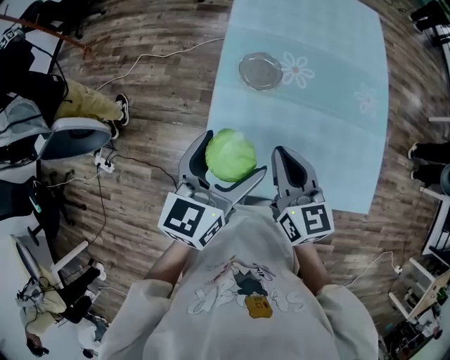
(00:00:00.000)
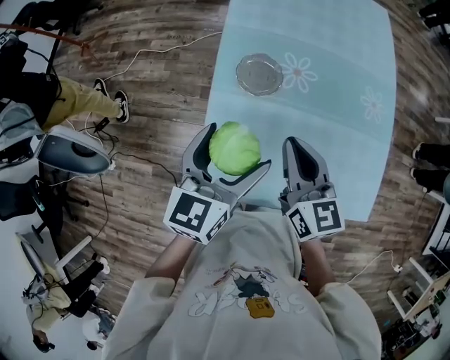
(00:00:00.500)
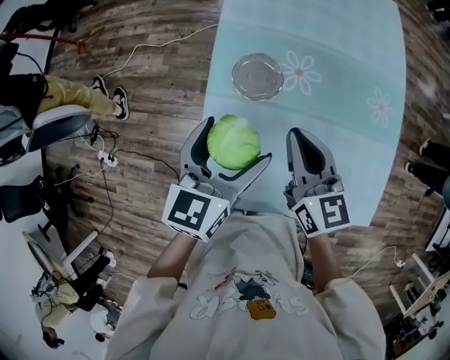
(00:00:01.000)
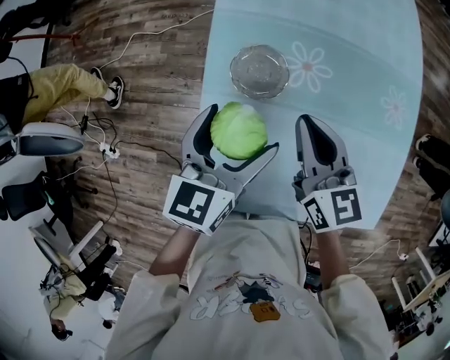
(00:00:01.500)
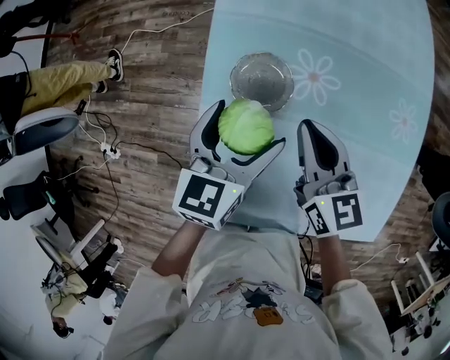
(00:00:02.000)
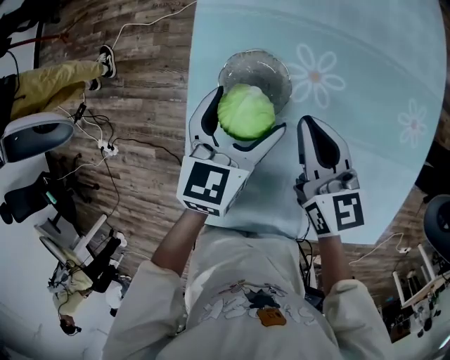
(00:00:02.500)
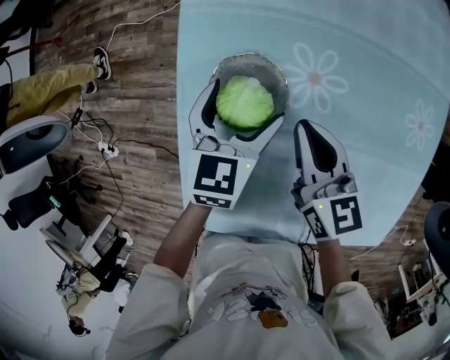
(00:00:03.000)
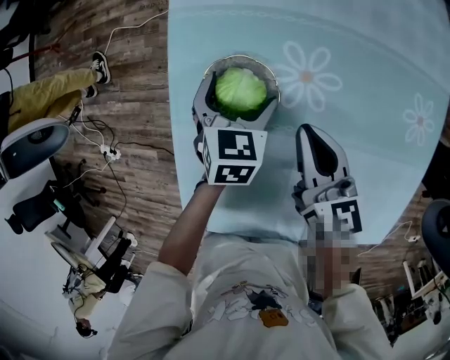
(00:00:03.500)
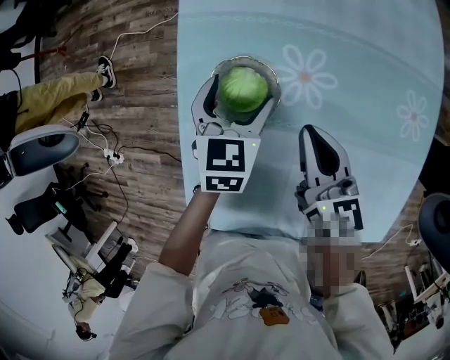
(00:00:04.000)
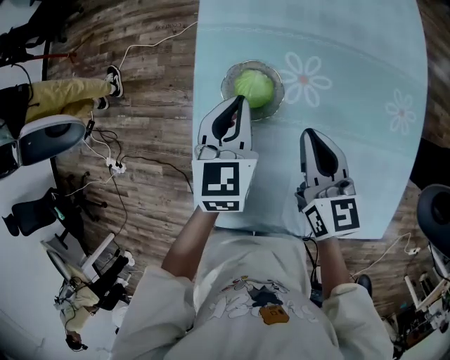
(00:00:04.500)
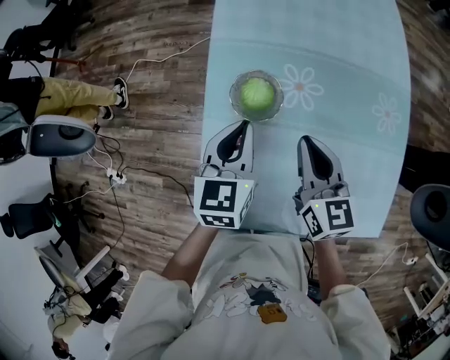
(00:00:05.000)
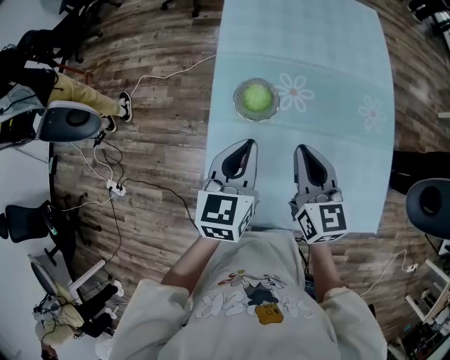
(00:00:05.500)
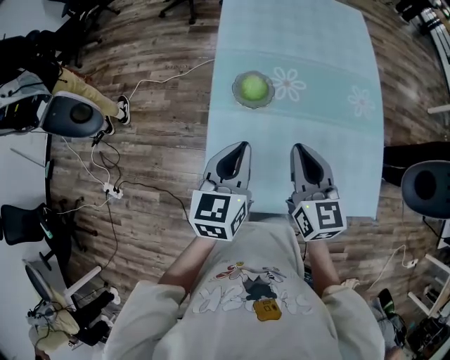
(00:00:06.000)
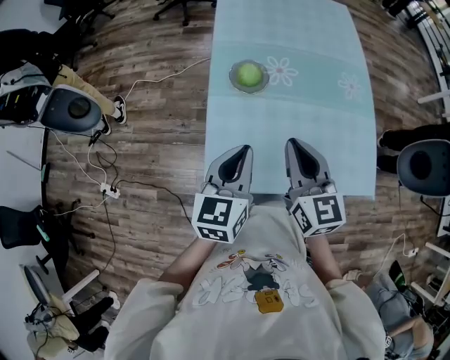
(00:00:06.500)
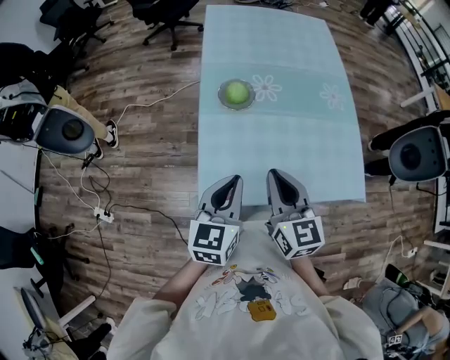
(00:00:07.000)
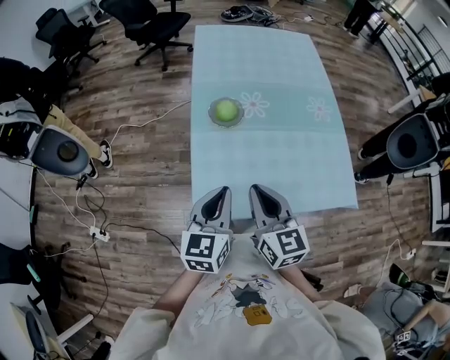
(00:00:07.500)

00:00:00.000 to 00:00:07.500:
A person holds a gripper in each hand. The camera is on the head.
00:00:00.000 to 00:00:02.000: The two grippers go some 25 cm forward and downward.
00:00:02.000 to 00:00:04.000: The left gripper moves downward and forward, roughly 15 cm; the right gripper moves downward, roughly 5 cm.
00:00:04.000 to 00:00:05.500: Both grippers travel together upward and backward, approximately 20 cm. The left gripper closes up.
00:00:05.500 to 00:00:07.500: The grippers both shift backward by about 20 cm.

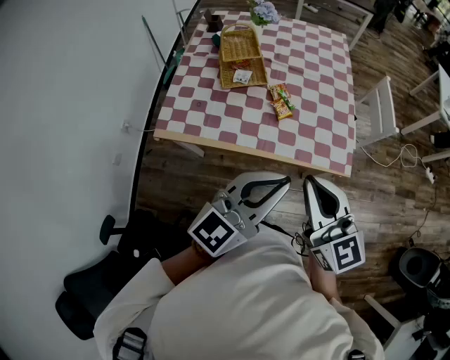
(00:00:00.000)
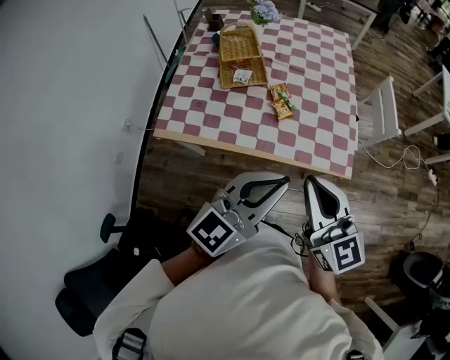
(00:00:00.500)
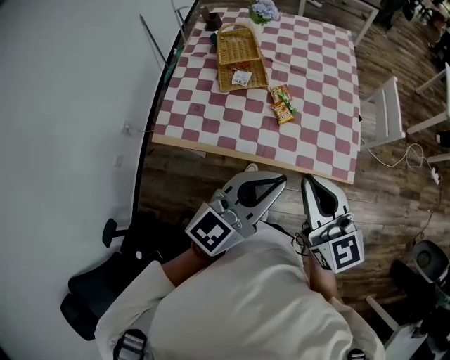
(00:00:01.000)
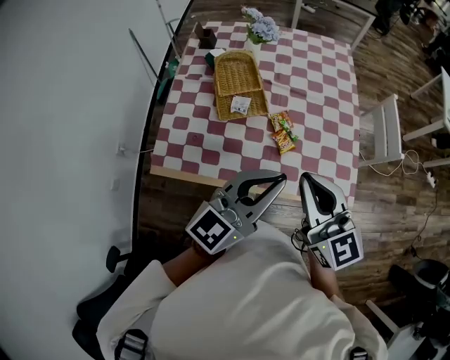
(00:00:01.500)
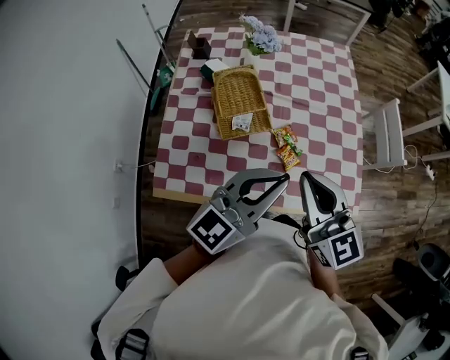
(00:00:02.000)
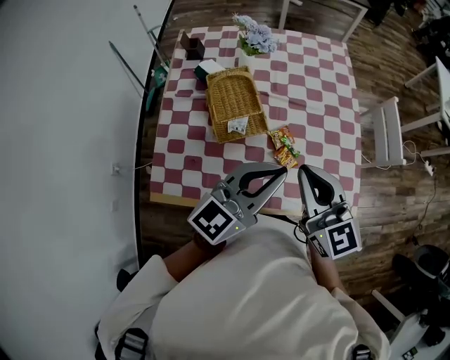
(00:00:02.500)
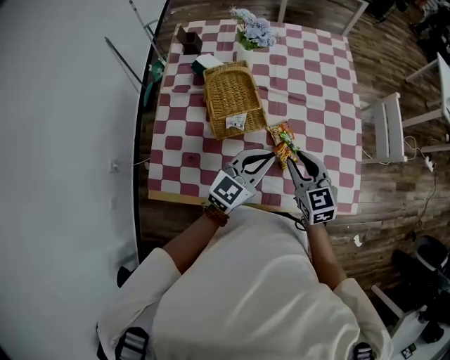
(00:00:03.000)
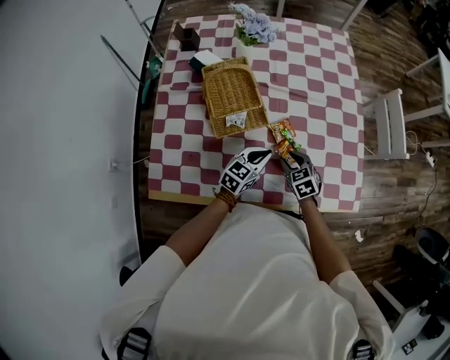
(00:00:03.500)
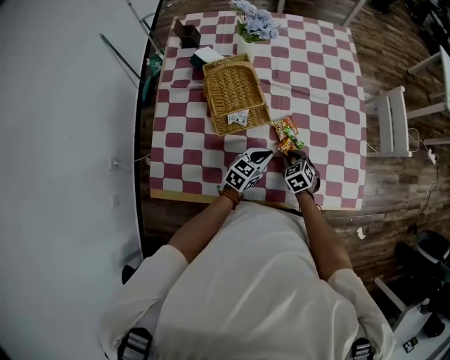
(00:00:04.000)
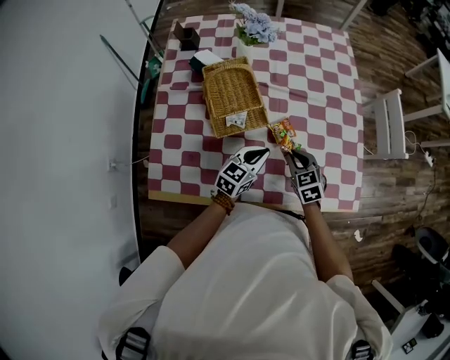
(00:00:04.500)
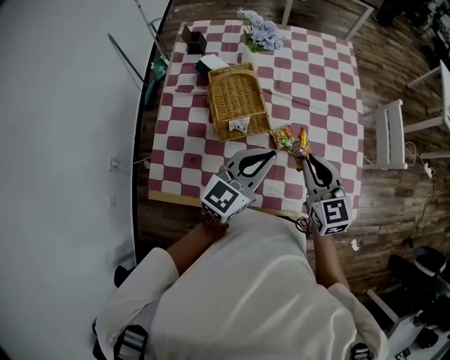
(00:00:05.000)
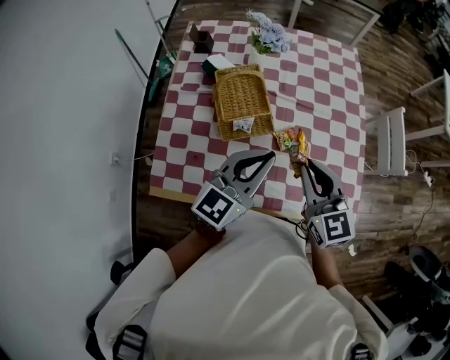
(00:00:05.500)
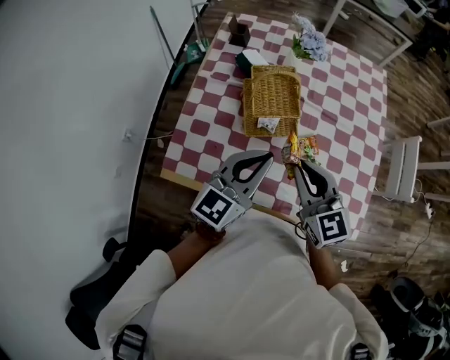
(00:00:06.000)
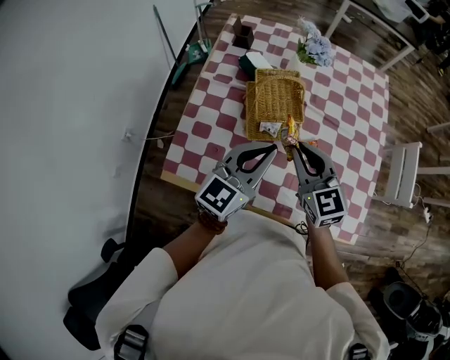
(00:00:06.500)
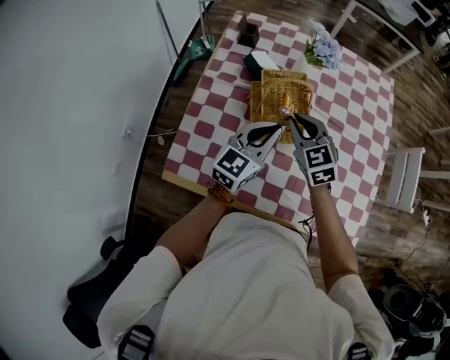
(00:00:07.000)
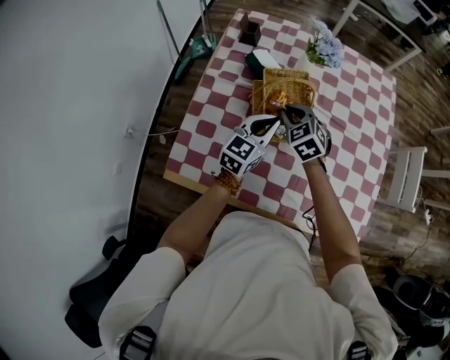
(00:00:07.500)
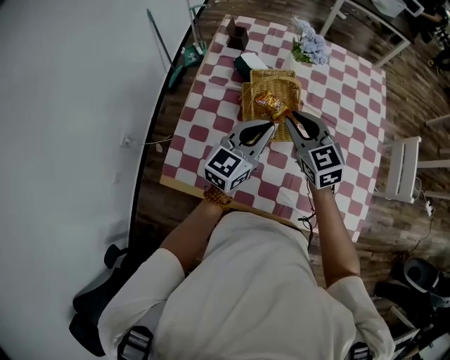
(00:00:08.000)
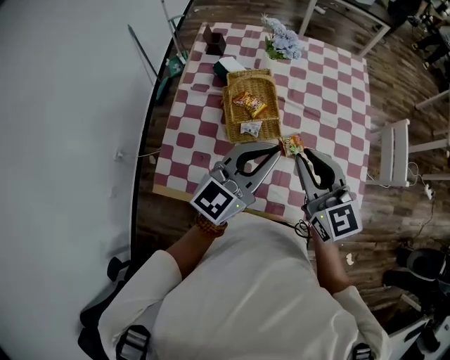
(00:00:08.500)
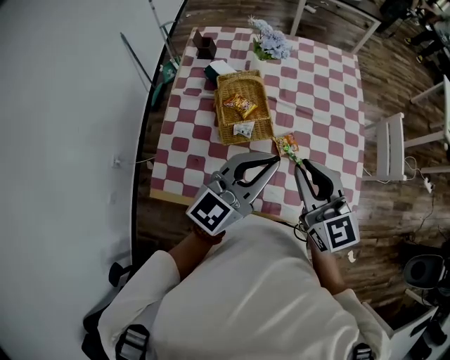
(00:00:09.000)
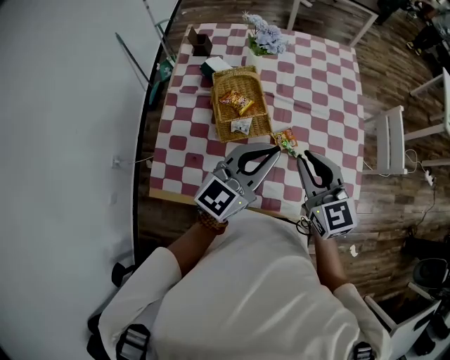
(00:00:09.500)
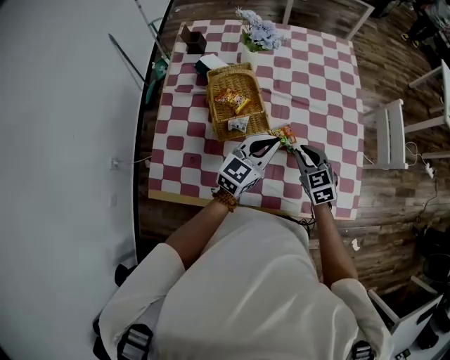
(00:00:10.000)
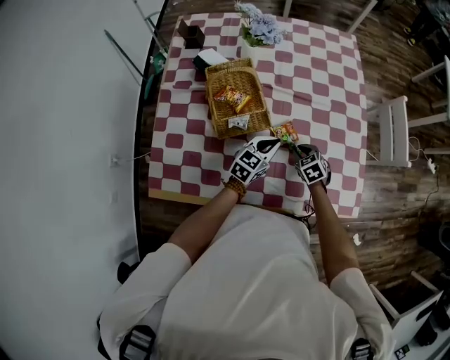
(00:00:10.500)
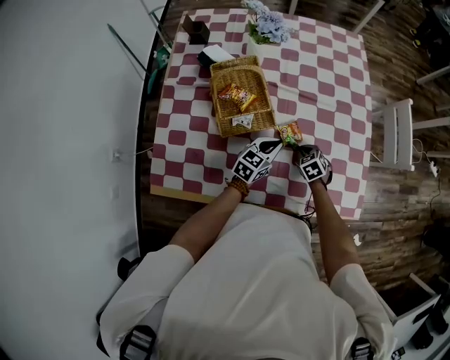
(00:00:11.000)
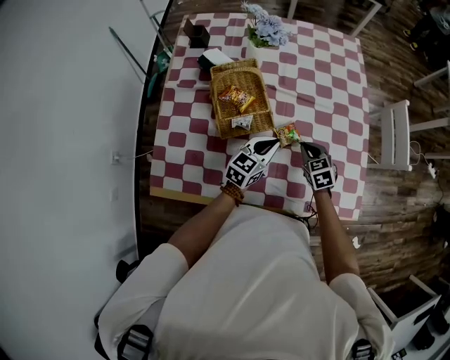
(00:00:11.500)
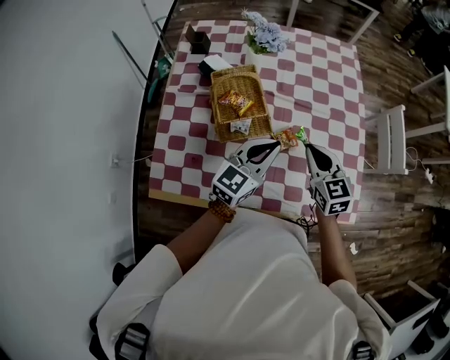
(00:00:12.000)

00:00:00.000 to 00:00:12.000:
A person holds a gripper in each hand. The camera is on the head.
00:00:00.000 to 00:00:02.000: Both grippers move forward and to the left, approximately 25 cm.
00:00:02.000 to 00:00:04.000: The grippers both shift downward by about 40 cm. The right gripper tilts its fingers about 60 degrees downward, and opens up; the left gripper tilts its fingers some 30 degrees downward.
00:00:04.000 to 00:00:06.000: The two grippers go some 35 cm upward. The left gripper changes its angle by roughly 30 degrees. The right gripper tips its fingers upward by roughly 40 degrees.
00:00:06.000 to 00:00:08.000: The left gripper shifts approximately 10 cm forward and downward. Meanwhile the right gripper travels forward by about 15 cm.
00:00:08.000 to 00:00:10.000: Both grippers travel together to the right and downward, some 20 cm. The right gripper changes its angle by about 20 degrees.
00:00:10.000 to 00:00:12.000: The right gripper reaches approximately 20 cm downward, then returns. Meanwhile the left gripper reaches some 15 cm downward, then returns.

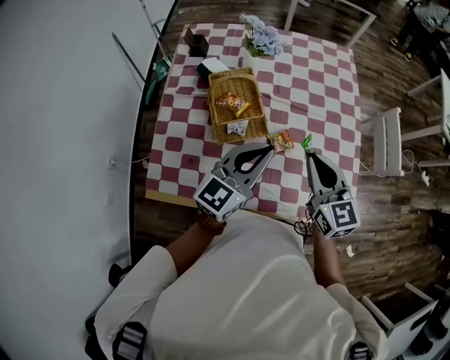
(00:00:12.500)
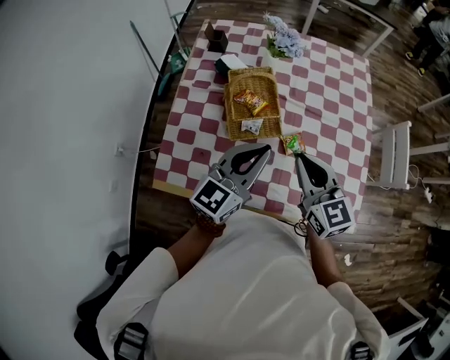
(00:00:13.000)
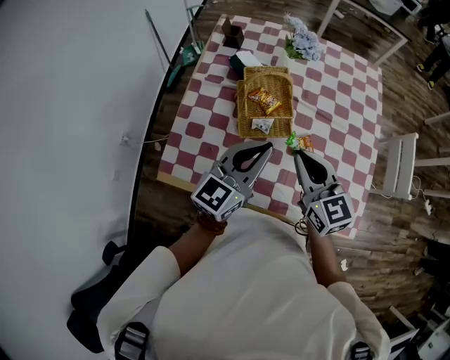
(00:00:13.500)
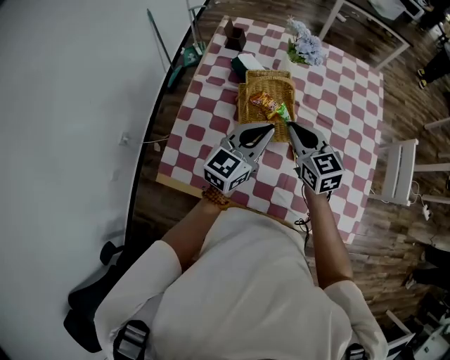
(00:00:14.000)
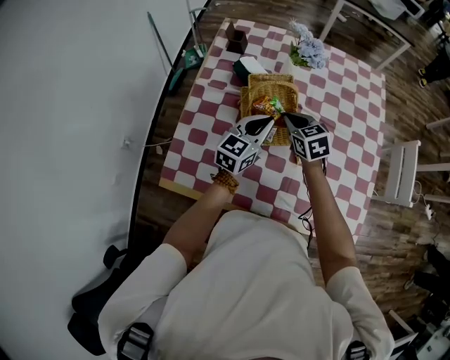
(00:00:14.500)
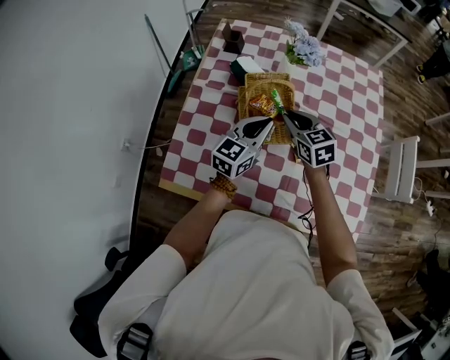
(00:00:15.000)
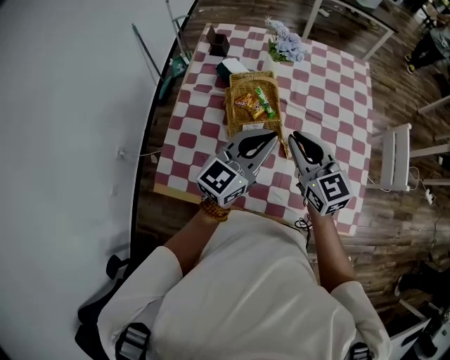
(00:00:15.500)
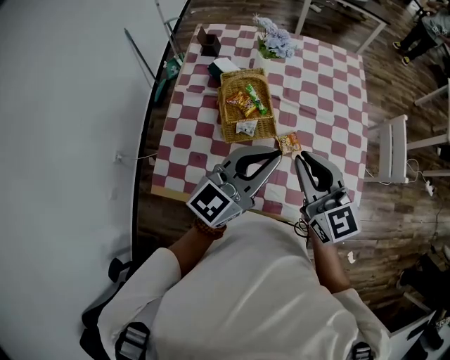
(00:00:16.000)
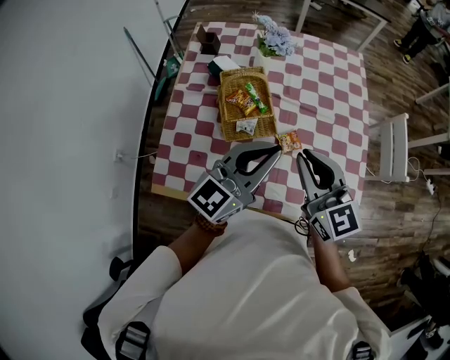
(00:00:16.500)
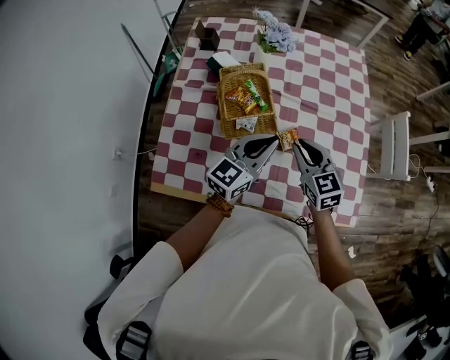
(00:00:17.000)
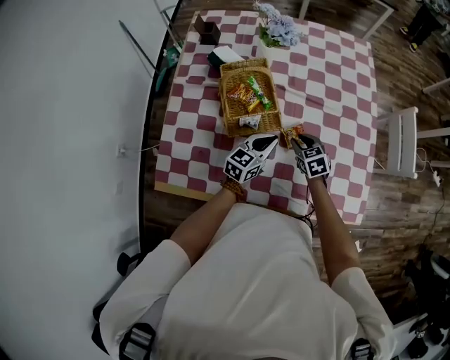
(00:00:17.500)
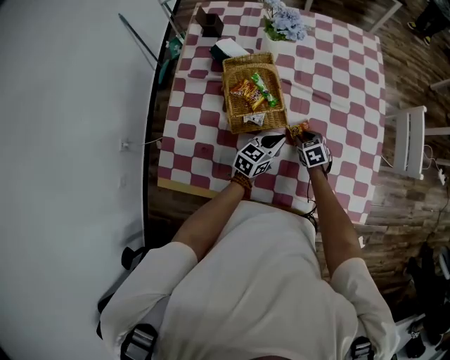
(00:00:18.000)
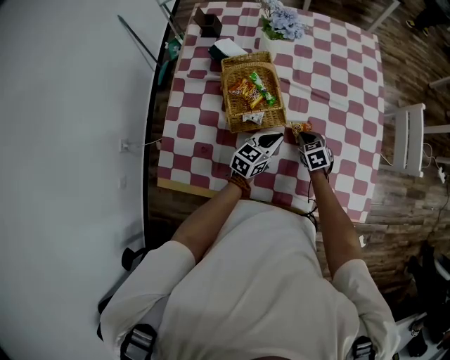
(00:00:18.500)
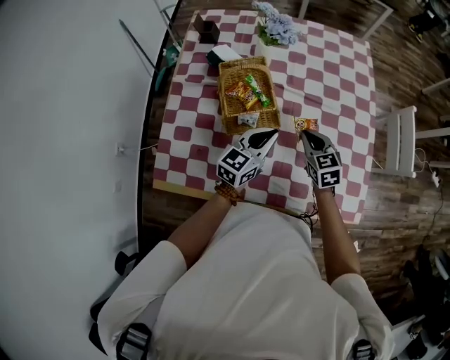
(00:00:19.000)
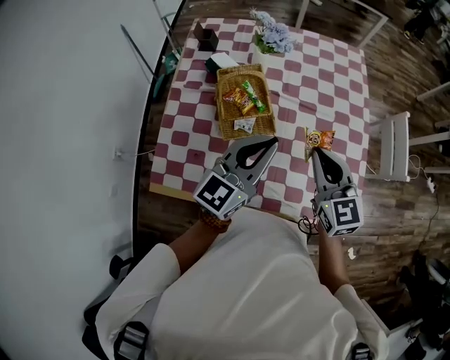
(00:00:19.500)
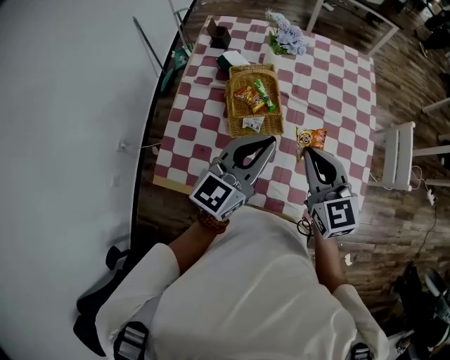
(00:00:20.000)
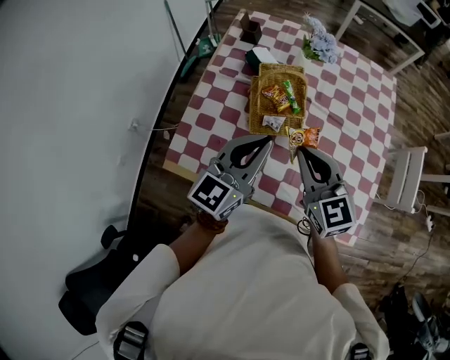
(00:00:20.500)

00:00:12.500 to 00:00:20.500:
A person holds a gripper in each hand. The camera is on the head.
00:00:12.500 to 00:00:14.500: The right gripper is displaced to the left, forward and downward by some 25 cm, and rotates some 30 degrees, while the left gripper moves forward, downward and to the left, some 20 cm.
00:00:14.500 to 00:00:16.500: The two grippers go roughly 25 cm upward, backward and to the right. The right gripper tips its fingers upward by approximately 30 degrees. Meanwhile the left gripper swivels roughly 20 degrees.
00:00:16.500 to 00:00:18.500: Both grippers travel together downward, about 35 cm. The right gripper tips its fingers downward by approximately 50 degrees, and opens, then closes again; the left gripper rotates roughly 30 degrees.
00:00:18.500 to 00:00:20.500: The grippers both shift upward by about 30 cm. The right gripper tilts its fingers approximately 40 degrees upward. Meanwhile the left gripper swivels approximately 30 degrees.
